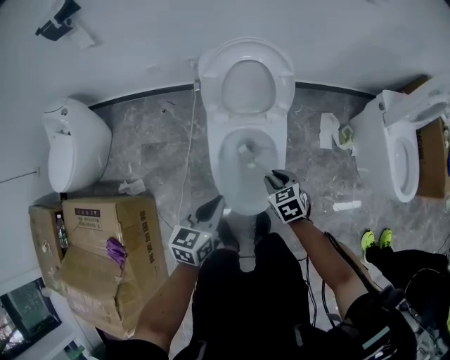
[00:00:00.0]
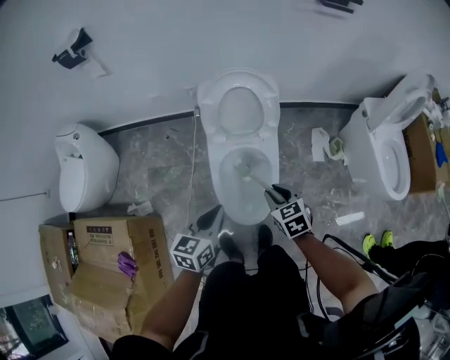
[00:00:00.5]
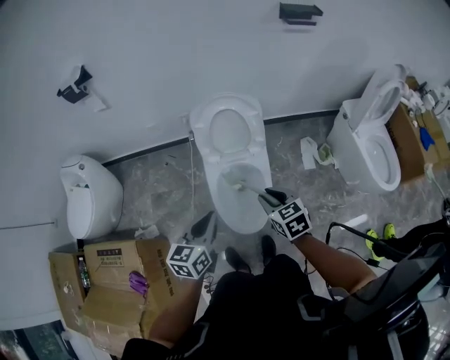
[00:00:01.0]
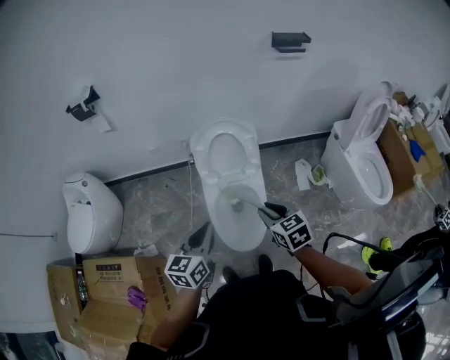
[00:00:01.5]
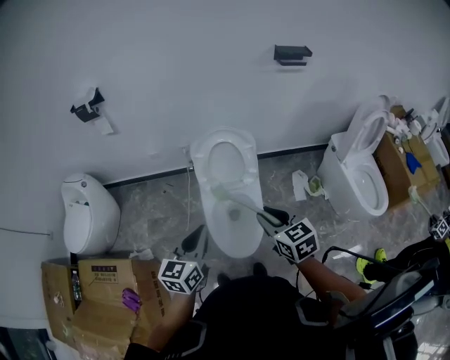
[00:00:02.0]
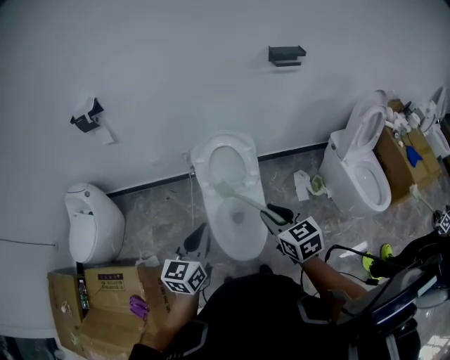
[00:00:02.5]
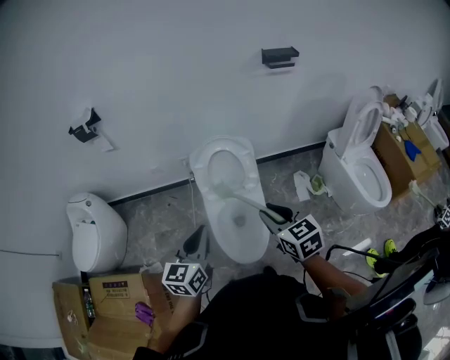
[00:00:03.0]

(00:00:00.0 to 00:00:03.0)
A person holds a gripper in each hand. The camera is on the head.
00:00:00.0 - 00:00:01.5: Both grippers move upward, approximately 25 cm.
00:00:01.5 - 00:00:03.0: The right gripper goes roughly 10 cm upward, while the left gripper heads upward, covering roughly 5 cm.

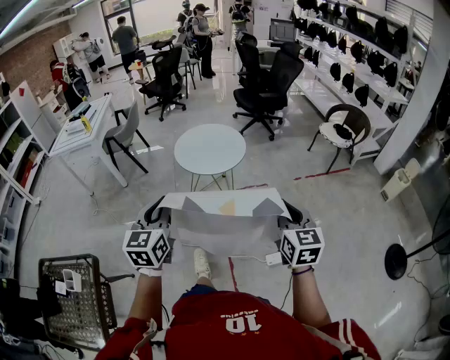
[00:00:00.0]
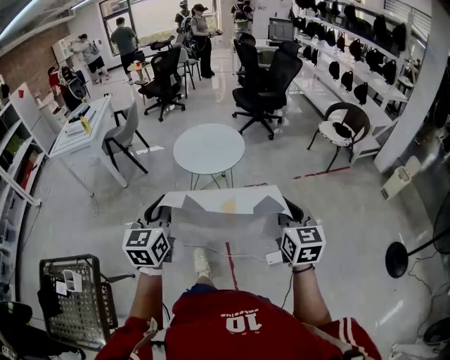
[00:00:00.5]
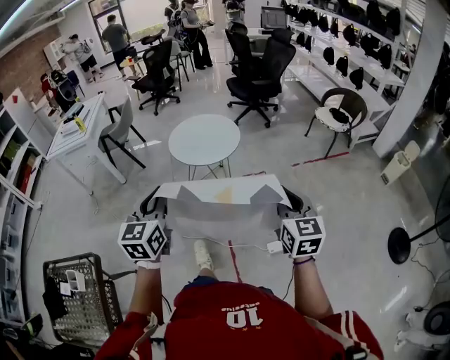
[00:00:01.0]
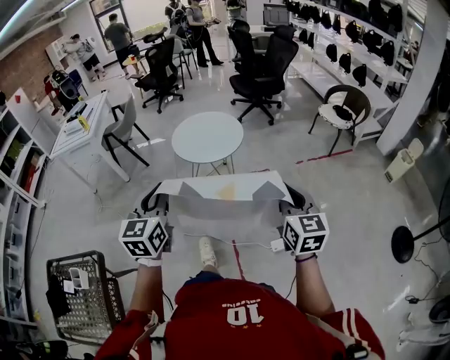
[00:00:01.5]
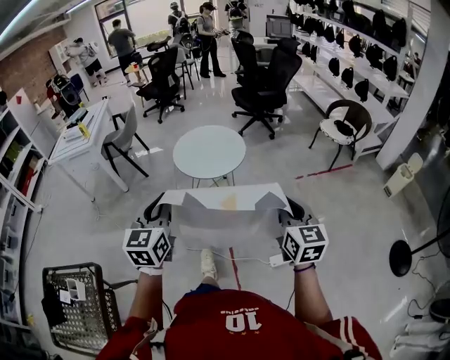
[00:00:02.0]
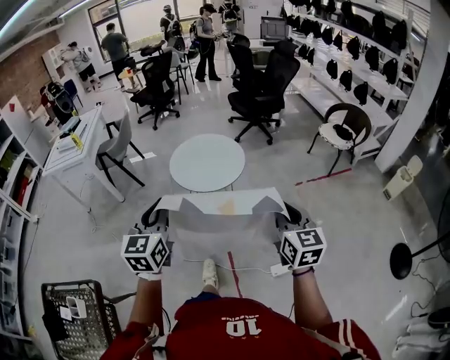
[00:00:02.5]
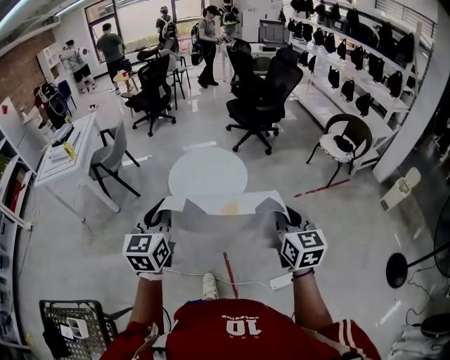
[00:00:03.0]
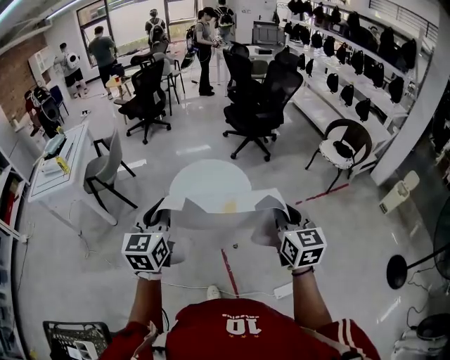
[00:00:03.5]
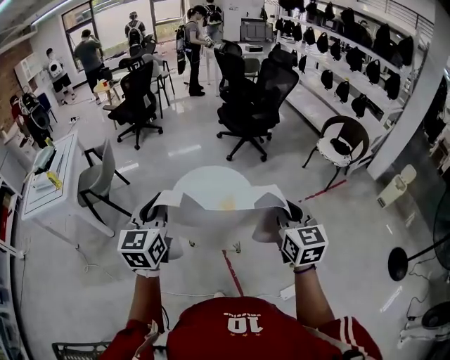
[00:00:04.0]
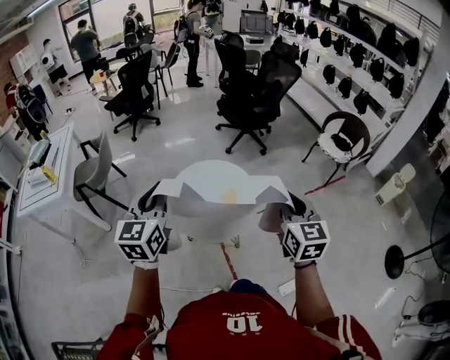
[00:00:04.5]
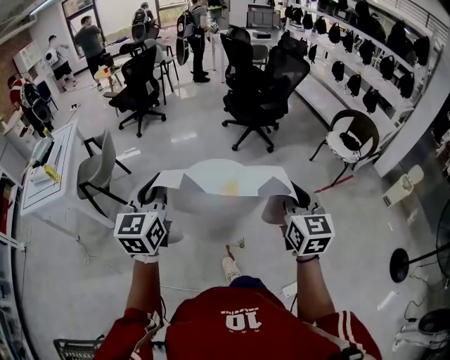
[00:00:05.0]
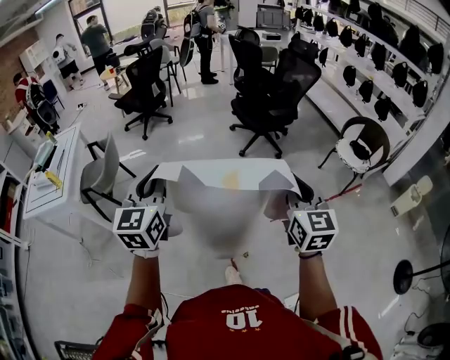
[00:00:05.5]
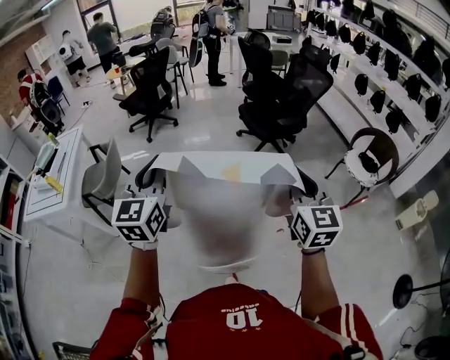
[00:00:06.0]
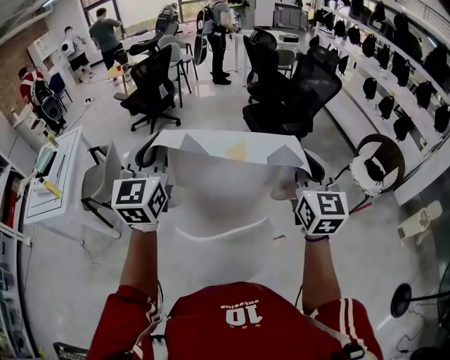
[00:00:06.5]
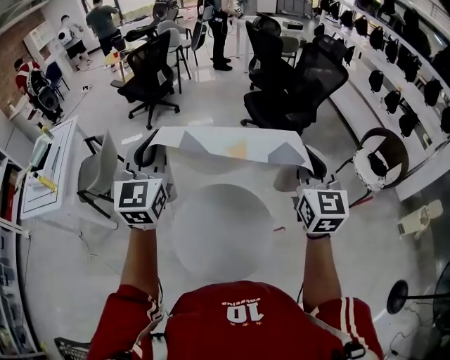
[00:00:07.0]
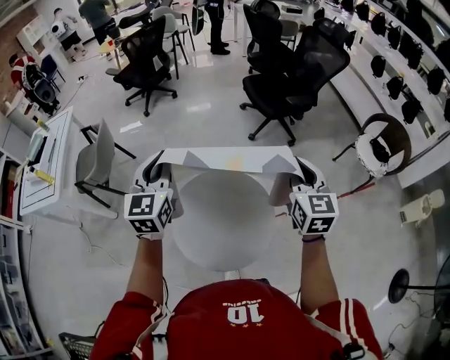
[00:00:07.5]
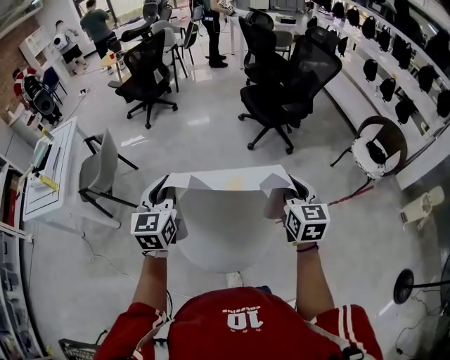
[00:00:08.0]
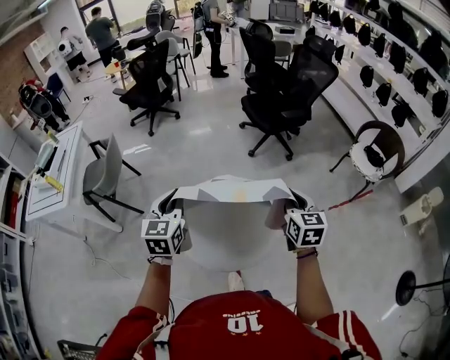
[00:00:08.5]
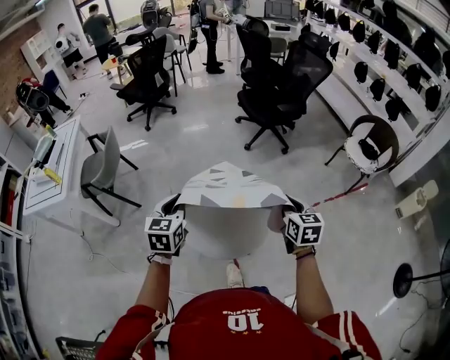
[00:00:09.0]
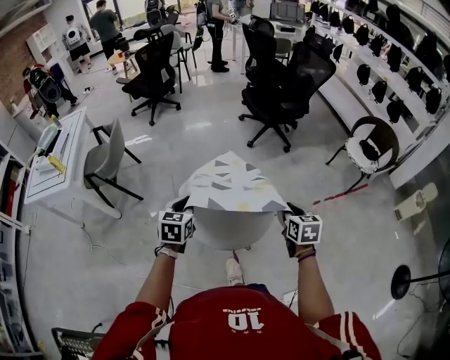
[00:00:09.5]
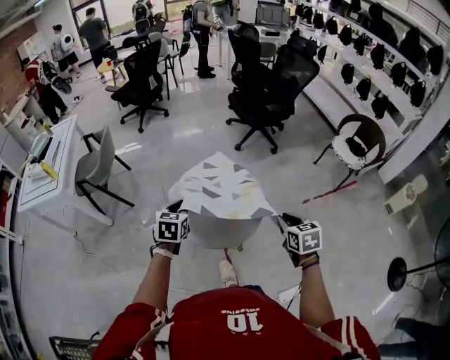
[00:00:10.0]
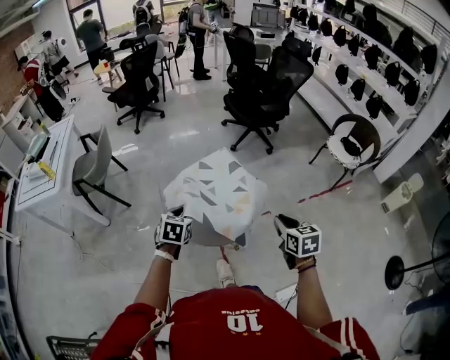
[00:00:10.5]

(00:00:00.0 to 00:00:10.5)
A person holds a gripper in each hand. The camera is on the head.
00:00:00.0 - 00:00:02.0: The grippers stay close to where they were, moving slightly.
00:00:02.0 - 00:00:04.0: The two grippers go about 35 cm forward.
00:00:04.0 - 00:00:06.5: The two grippers go roughly 35 cm forward.
00:00:06.5 - 00:00:08.5: The left gripper heads downward and backward, covering approximately 25 cm, and turns by approximately 20 degrees. The right gripper moves downward, about 20 cm, and swivels some 20 degrees.
00:00:08.5 - 00:00:10.5: The right gripper is displaced backward by some 20 cm, while the left gripper travels downward and backward by roughly 20 cm, swivels about 30 degrees, and opens.

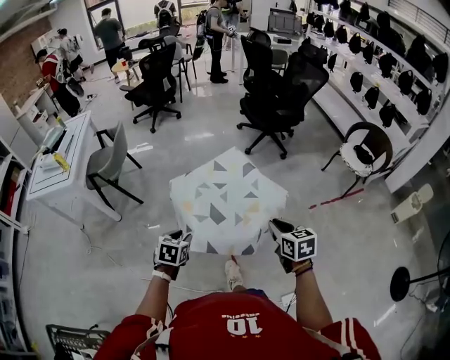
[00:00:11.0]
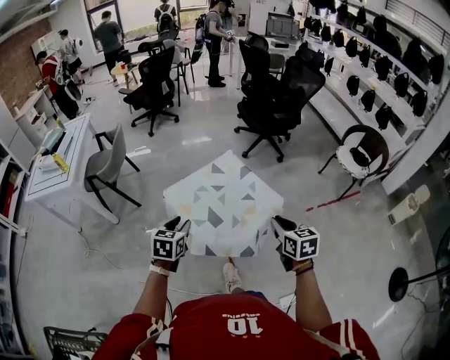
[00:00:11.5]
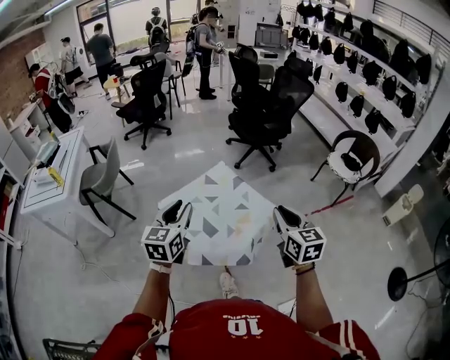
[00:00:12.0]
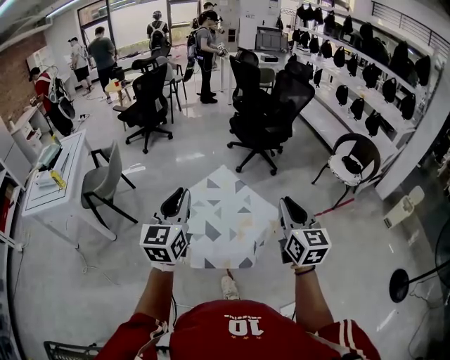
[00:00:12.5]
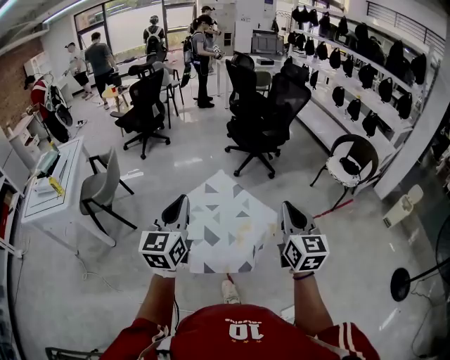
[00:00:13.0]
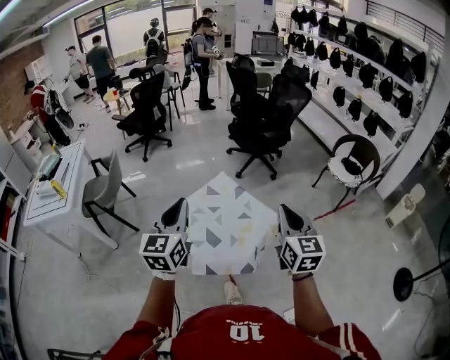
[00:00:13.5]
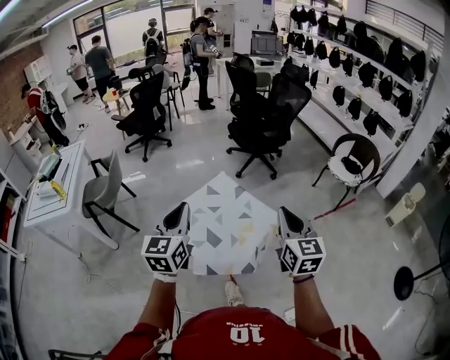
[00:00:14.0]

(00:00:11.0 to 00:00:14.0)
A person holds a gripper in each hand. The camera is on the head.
00:00:11.0 - 00:00:12.5: The right gripper heads upward, covering approximately 20 cm, and swivels approximately 30 degrees; the left gripper travels upward by approximately 30 cm, and points its fingers approximately 50 degrees further upward.
00:00:12.5 - 00:00:14.0: The grippers stay close to where they were, moving slightly.

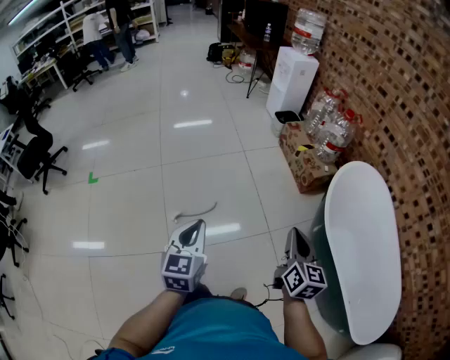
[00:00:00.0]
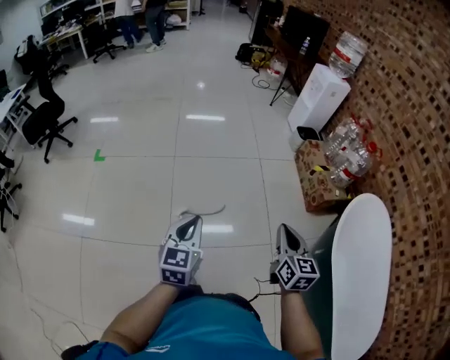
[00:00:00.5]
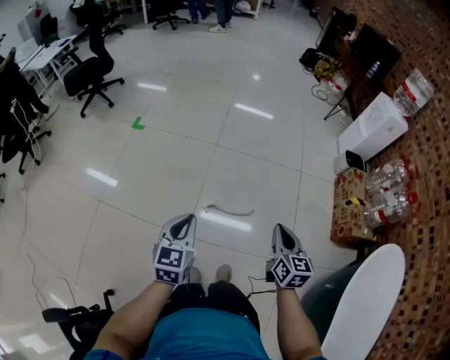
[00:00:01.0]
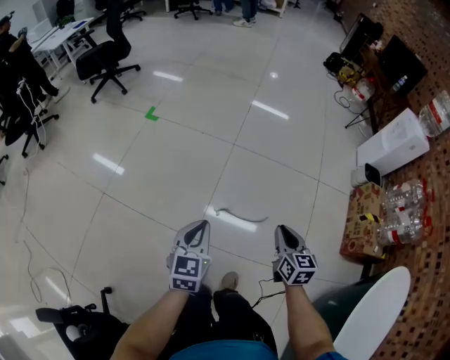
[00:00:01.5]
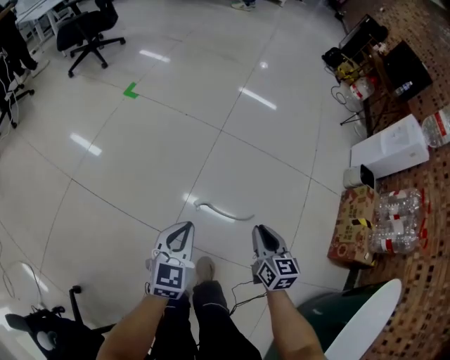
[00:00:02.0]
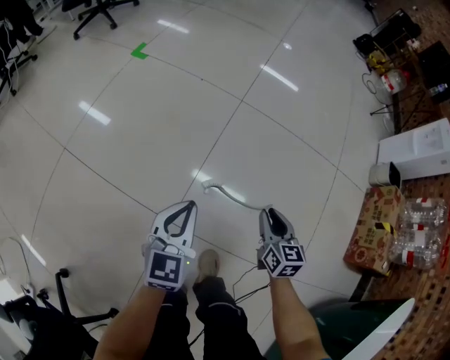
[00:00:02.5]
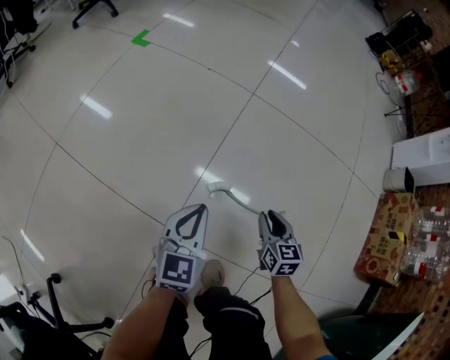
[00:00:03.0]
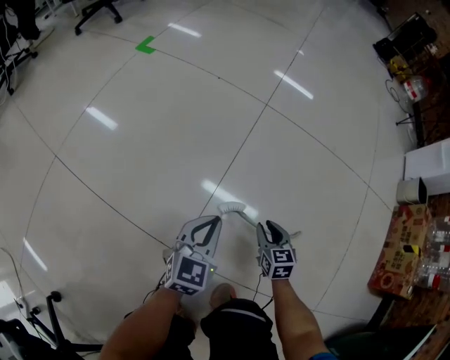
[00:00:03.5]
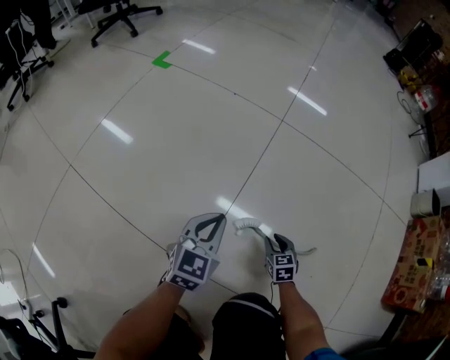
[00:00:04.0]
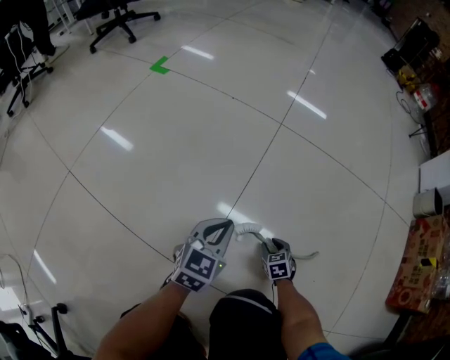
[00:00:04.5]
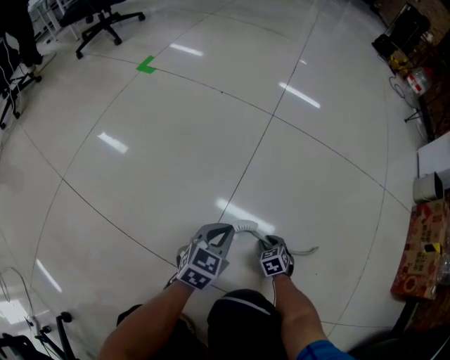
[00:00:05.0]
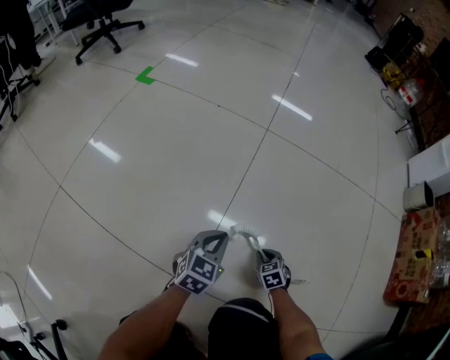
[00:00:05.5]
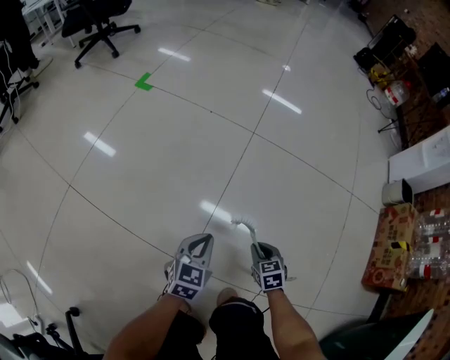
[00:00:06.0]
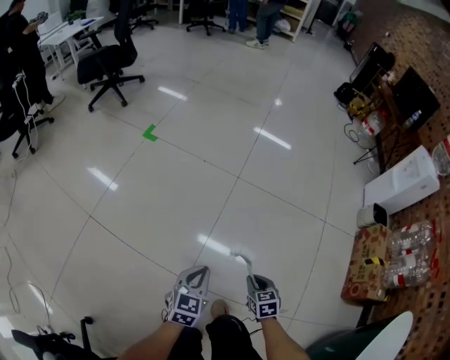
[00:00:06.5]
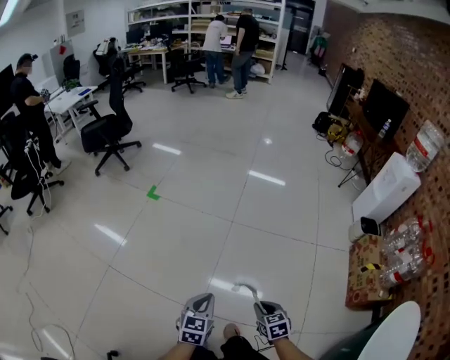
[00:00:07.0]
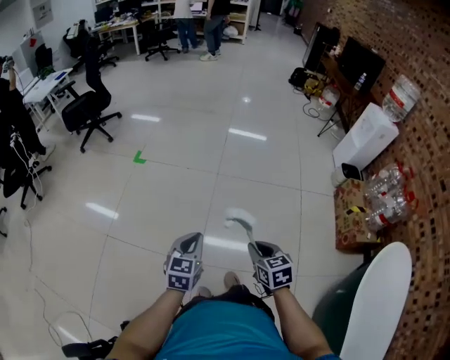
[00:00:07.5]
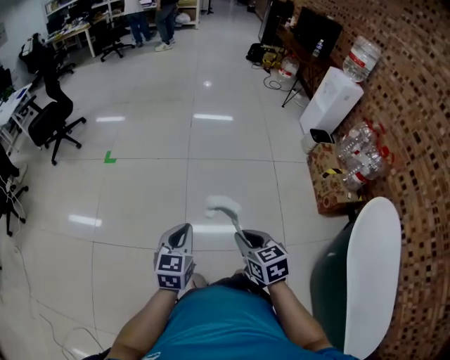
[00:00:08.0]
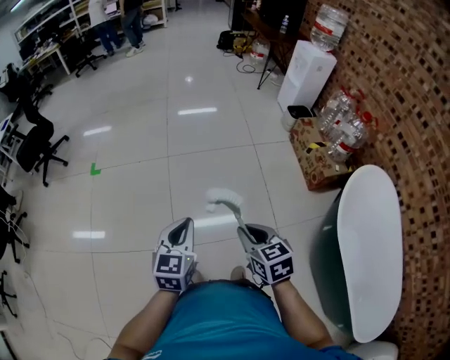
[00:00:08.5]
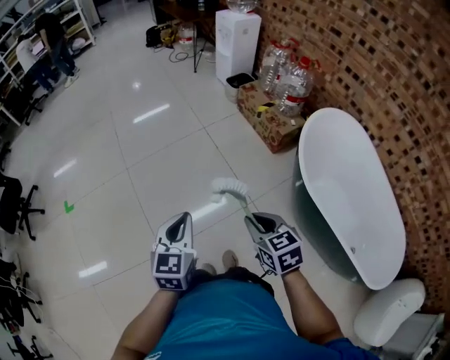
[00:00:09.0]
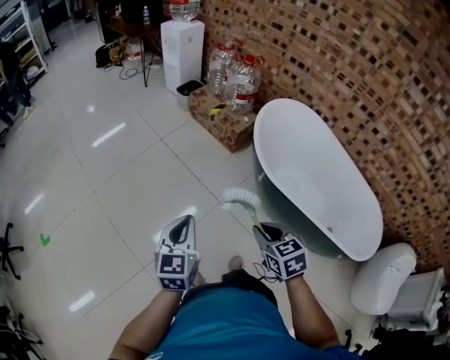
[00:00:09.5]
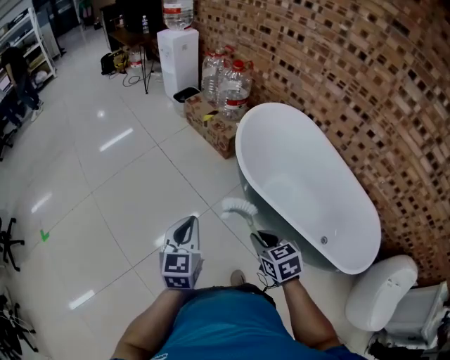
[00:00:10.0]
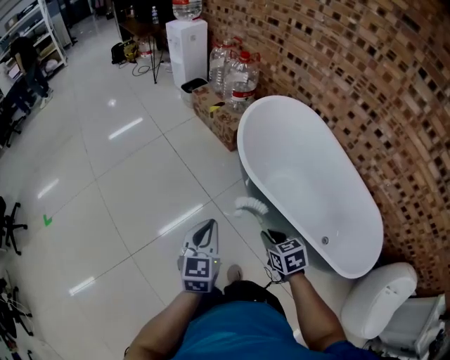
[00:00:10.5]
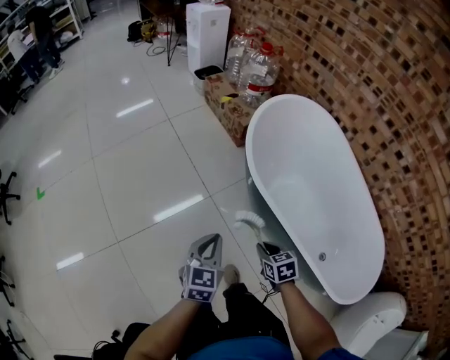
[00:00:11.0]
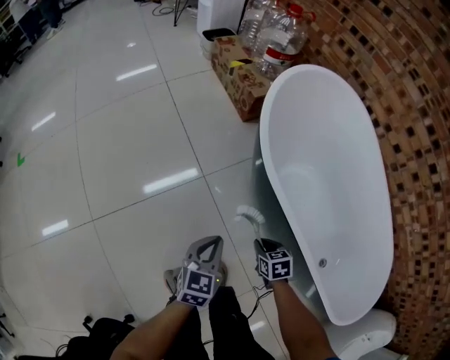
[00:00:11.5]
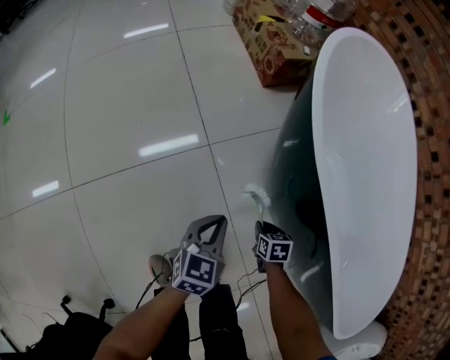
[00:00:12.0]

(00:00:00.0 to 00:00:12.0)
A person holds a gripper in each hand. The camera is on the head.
00:00:00.0 - 00:00:02.0: The right gripper moves about 60 cm, and changes its angle by about 50 degrees. Meanwhile the left gripper ends up about 50 cm from where it was, and rotates some 30 degrees.
00:00:02.0 - 00:00:04.0: Both grippers move downward, some 50 cm. The right gripper turns by approximately 30 degrees.
00:00:04.0 - 00:00:06.0: The right gripper heads upward, covering about 20 cm, while the left gripper is displaced upward and backward by about 10 cm.
00:00:06.0 - 00:00:08.0: Both grippers move upward, approximately 60 cm. The right gripper rotates some 20 degrees.
00:00:08.0 - 00:00:10.0: The pair of grippers is taken roughly 60 cm. The left gripper rotates roughly 40 degrees. Meanwhile the right gripper changes its angle by about 40 degrees.
00:00:10.0 - 00:00:12.0: Both grippers move downward, roughly 60 cm. The right gripper changes its angle by roughly 20 degrees.
